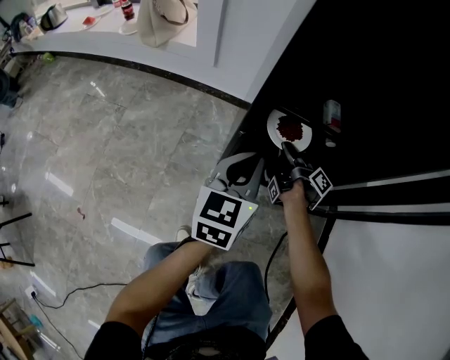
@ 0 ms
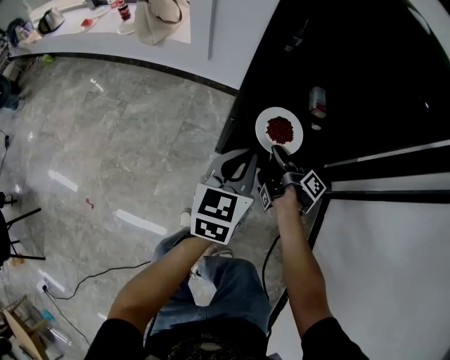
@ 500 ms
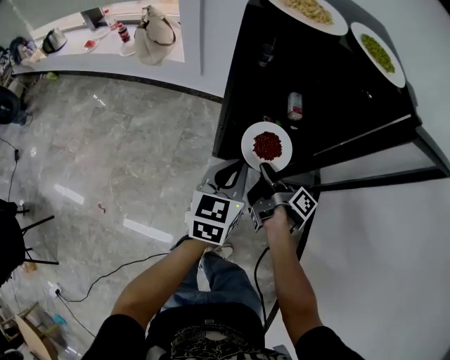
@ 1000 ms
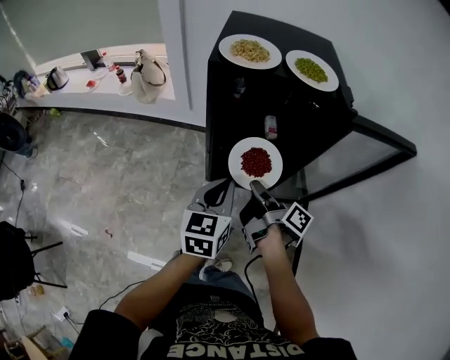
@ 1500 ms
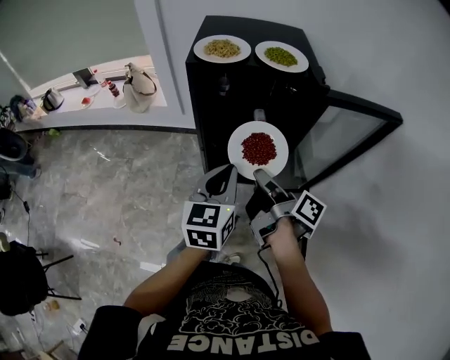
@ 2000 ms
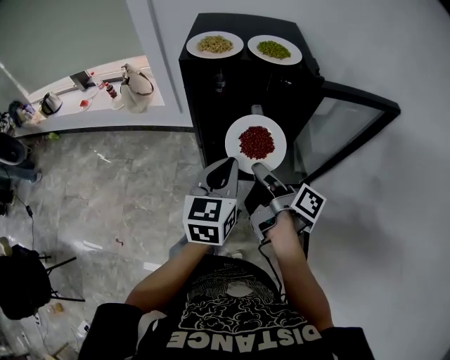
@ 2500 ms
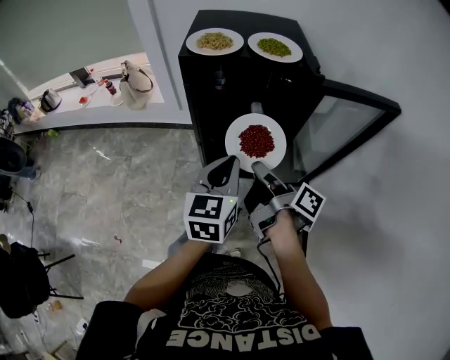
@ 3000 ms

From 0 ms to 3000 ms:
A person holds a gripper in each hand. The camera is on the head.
From 0 ms to 1500 ms: The grippers both shift upward and backward by some 35 cm.
From 1500 ms to 3000 ms: The left gripper is displaced upward and to the right by some 10 cm; the right gripper moves upward, approximately 5 cm.

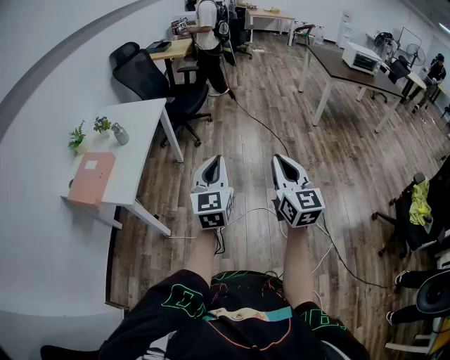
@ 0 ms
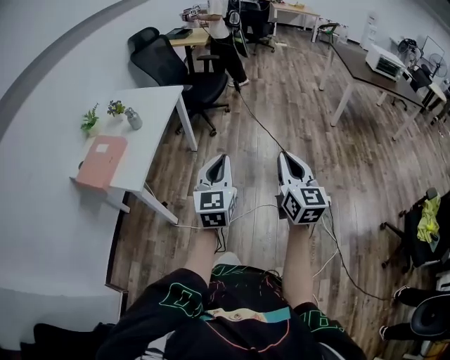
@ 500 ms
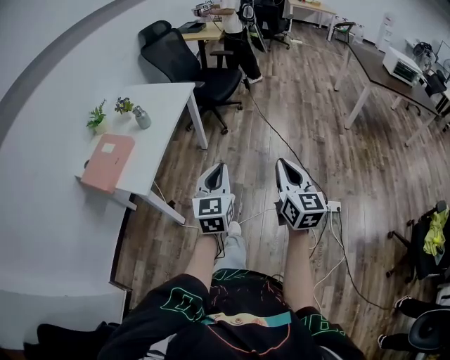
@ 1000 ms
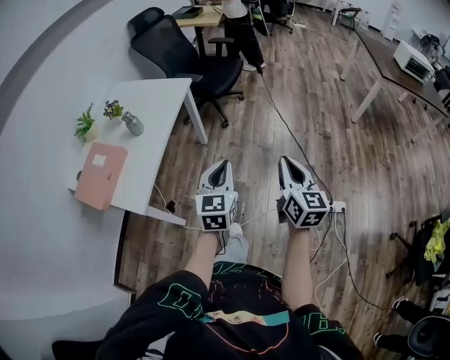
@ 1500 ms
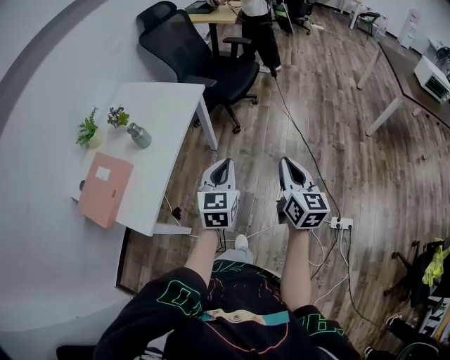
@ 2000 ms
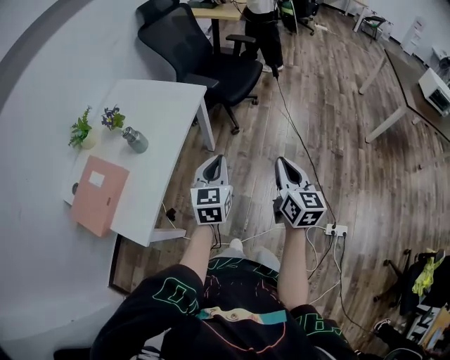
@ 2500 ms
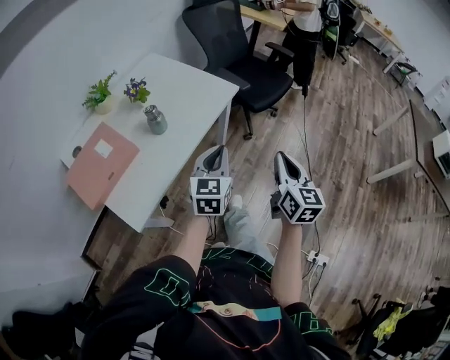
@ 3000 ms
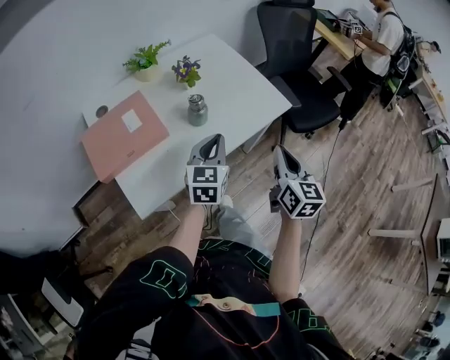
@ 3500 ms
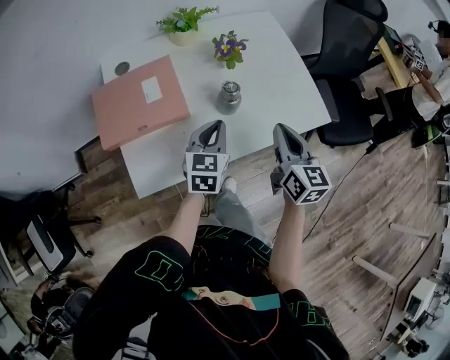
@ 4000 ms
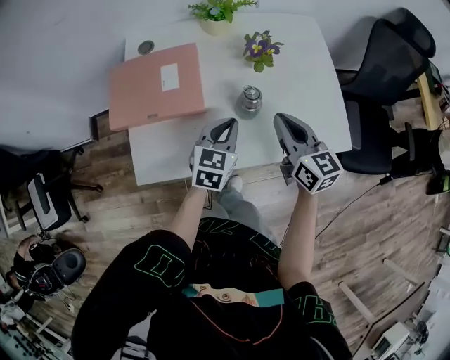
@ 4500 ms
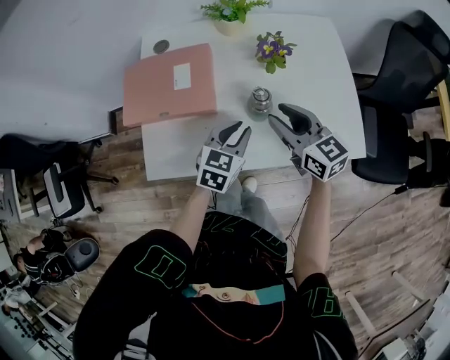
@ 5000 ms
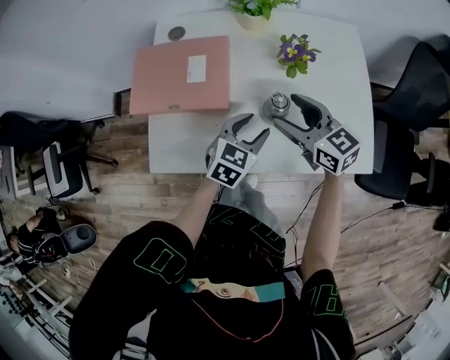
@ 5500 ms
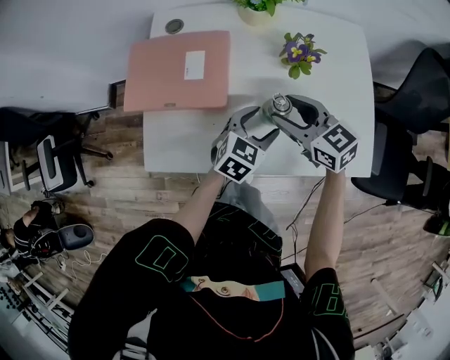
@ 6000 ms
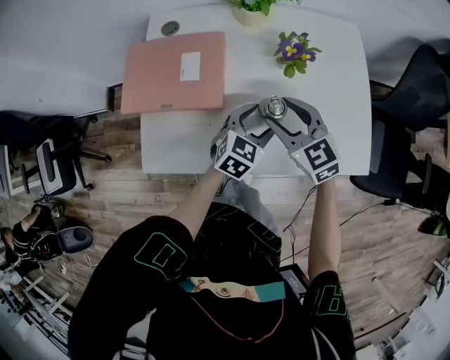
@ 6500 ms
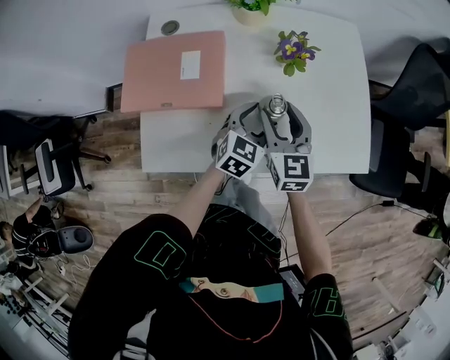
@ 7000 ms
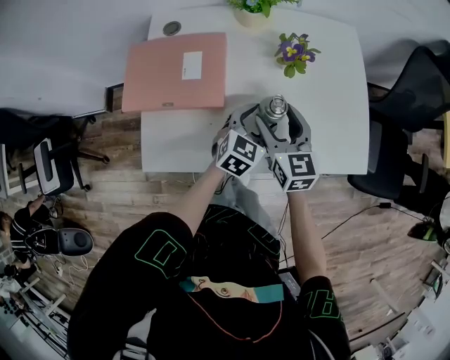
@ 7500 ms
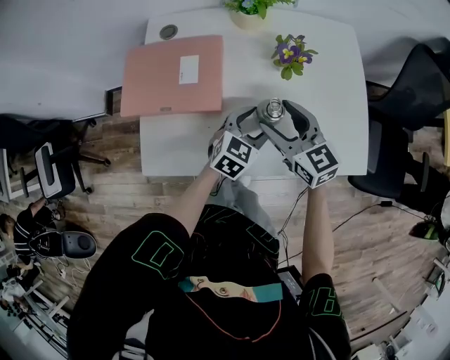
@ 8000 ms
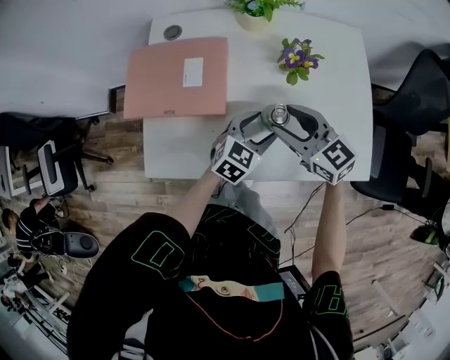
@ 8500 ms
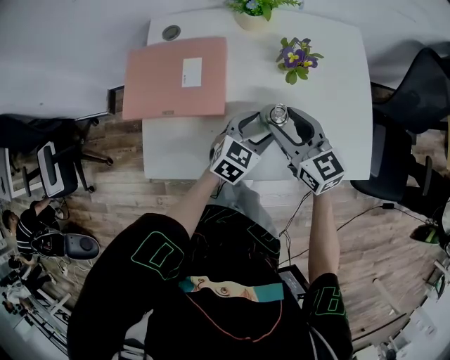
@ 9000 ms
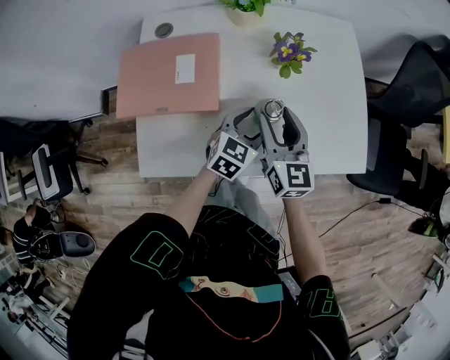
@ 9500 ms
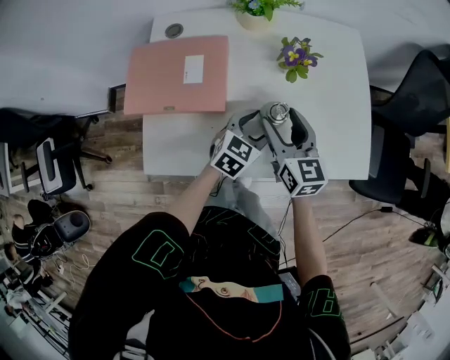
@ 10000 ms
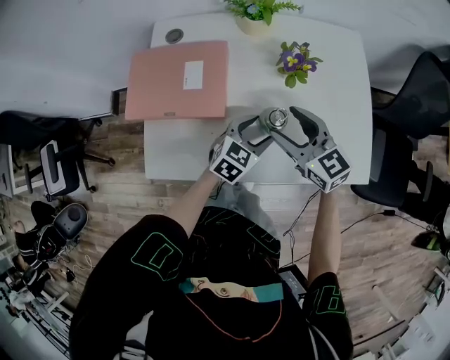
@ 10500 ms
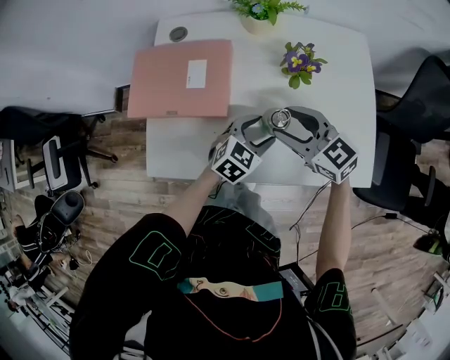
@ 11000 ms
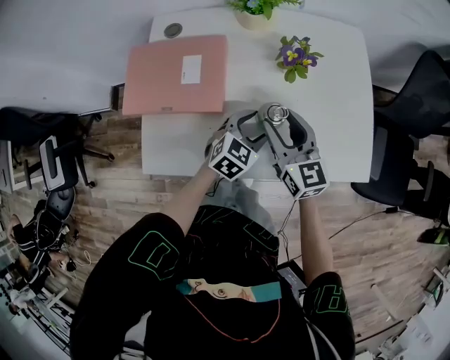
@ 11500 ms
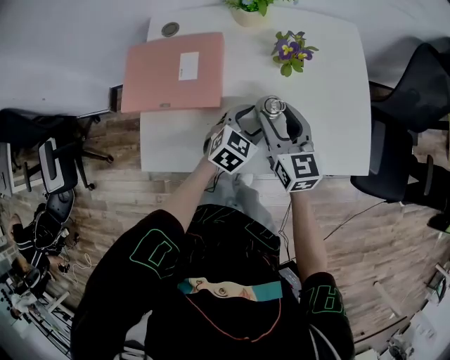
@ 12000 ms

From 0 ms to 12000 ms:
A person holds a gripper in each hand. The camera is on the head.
From 0 ms to 2000 ms: Both grippers travel together forward, roughly 35 cm.
From 2000 ms to 4000 ms: The two grippers travel together, roughly 50 cm. The left gripper rotates about 50 degrees. The right gripper changes its angle by some 60 degrees.
From 4000 ms to 6000 ms: The left gripper moves downward, approximately 10 cm, and opens, while the right gripper moves approximately 20 cm, swivels about 60 degrees, and opens.
From 8000 ms to 10000 ms: The right gripper turns by some 20 degrees.

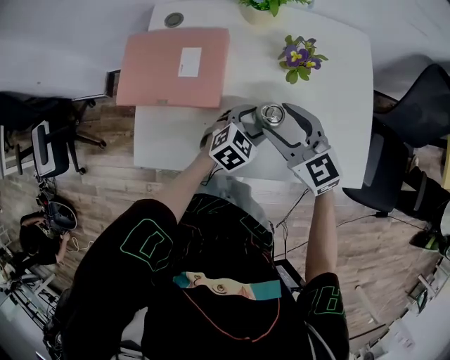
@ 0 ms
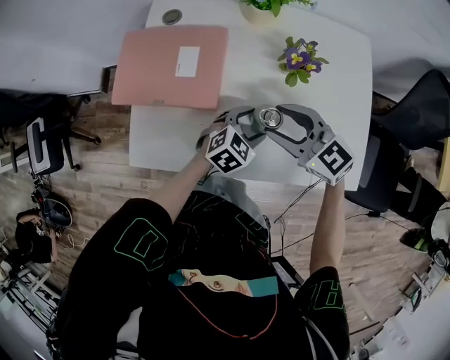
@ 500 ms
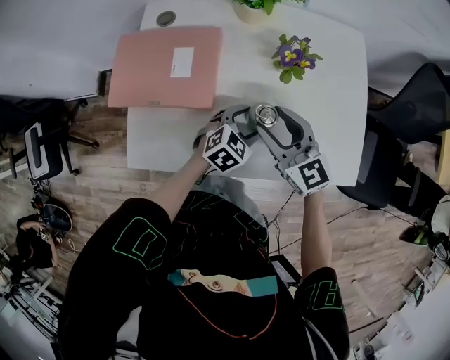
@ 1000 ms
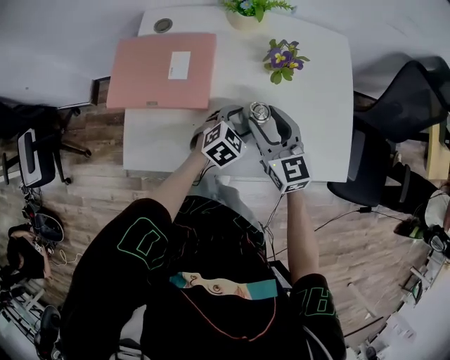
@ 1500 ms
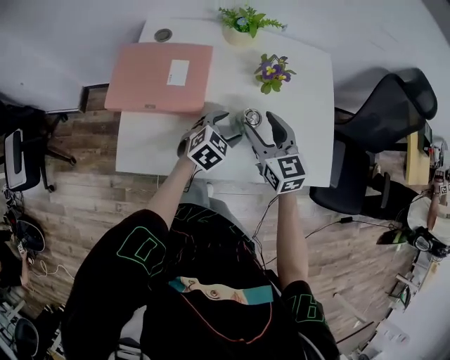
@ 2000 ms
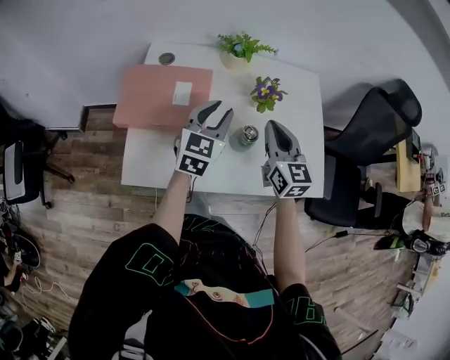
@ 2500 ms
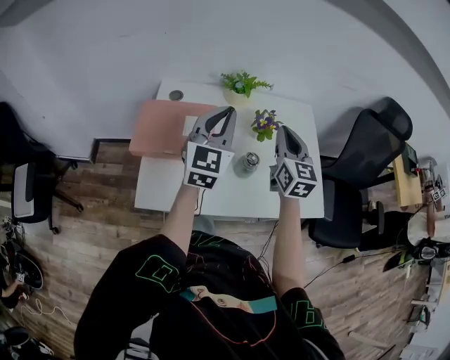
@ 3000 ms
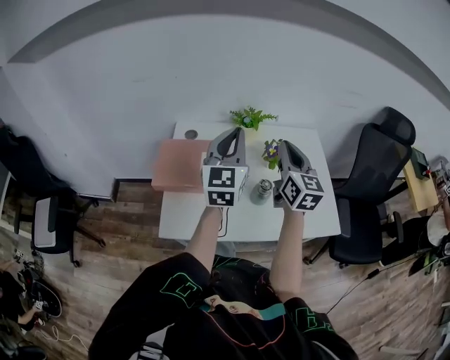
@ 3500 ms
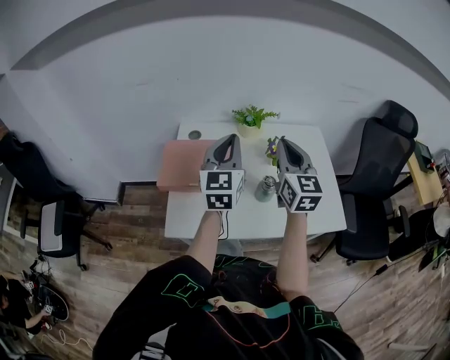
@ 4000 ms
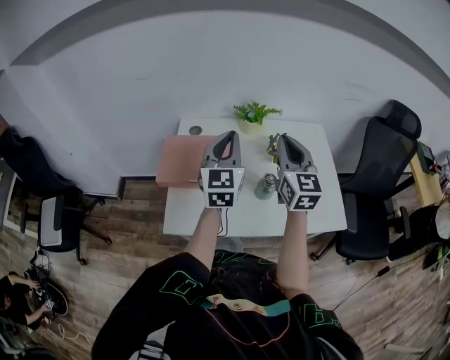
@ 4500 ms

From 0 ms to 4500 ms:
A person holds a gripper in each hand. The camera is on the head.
From 0 ms to 2000 ms: The grippers make only small movements.
From 2000 ms to 4500 ms: The right gripper shifts roughly 20 cm upward, turns by roughly 30 degrees, and closes its fingers; the left gripper moves upward and to the left, about 35 cm, points its fingers about 40 degrees further upward, and closes.

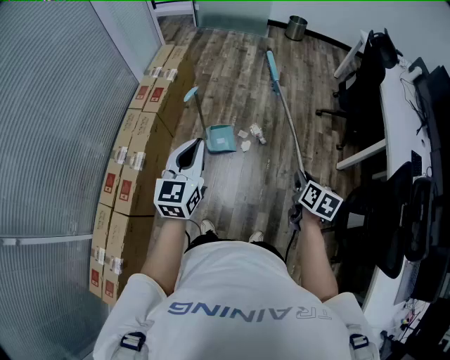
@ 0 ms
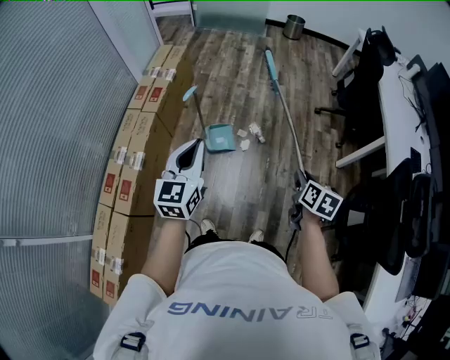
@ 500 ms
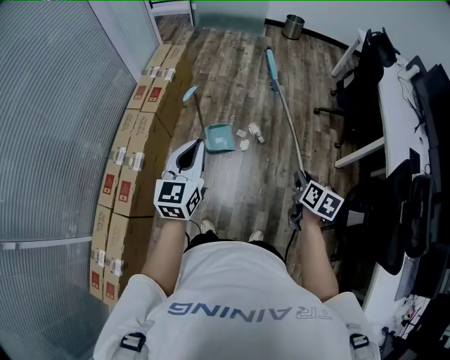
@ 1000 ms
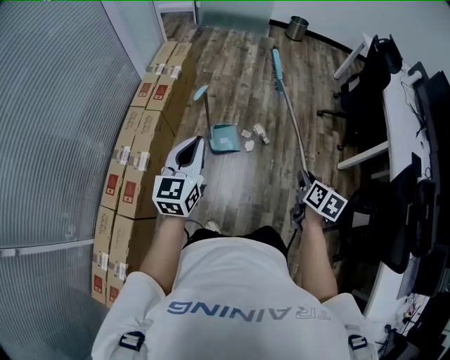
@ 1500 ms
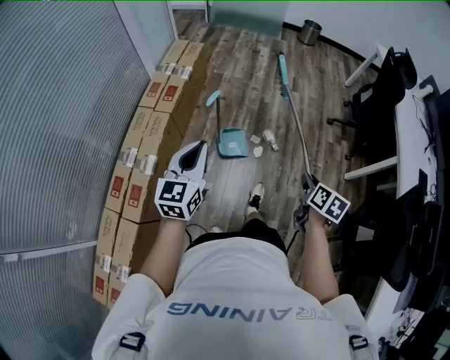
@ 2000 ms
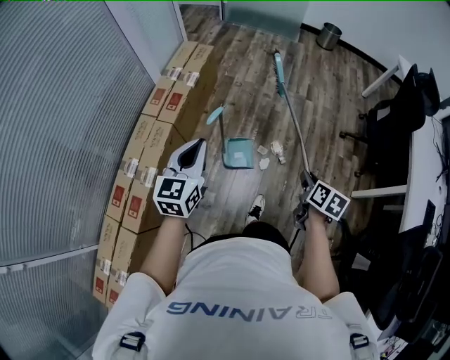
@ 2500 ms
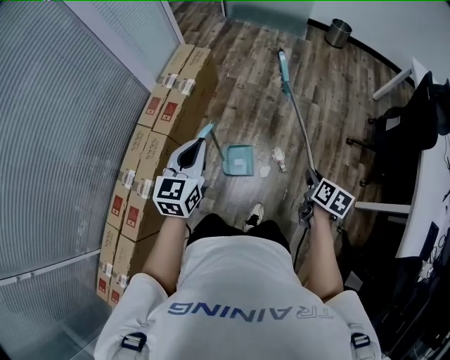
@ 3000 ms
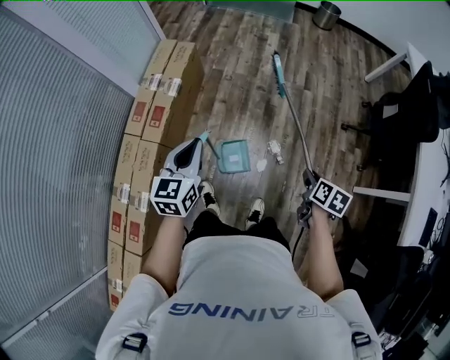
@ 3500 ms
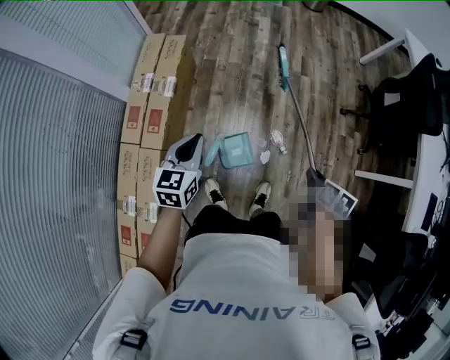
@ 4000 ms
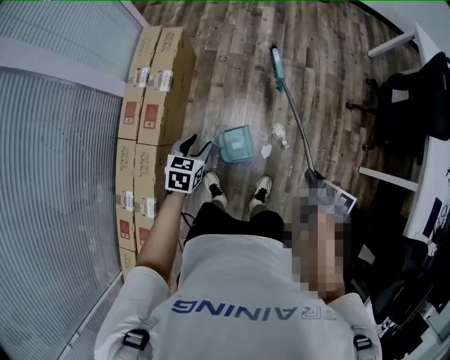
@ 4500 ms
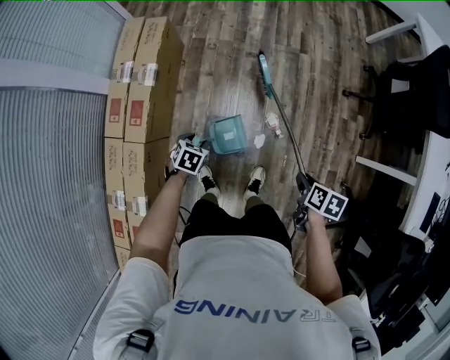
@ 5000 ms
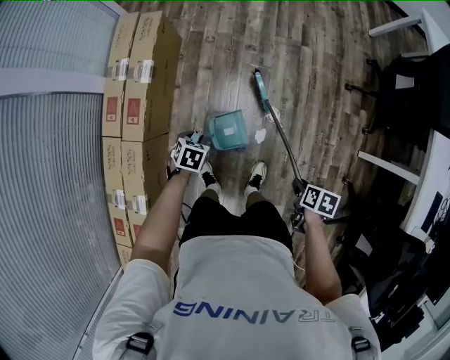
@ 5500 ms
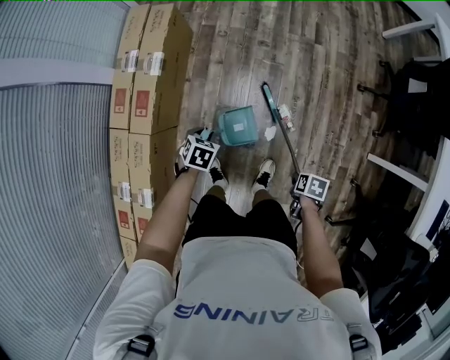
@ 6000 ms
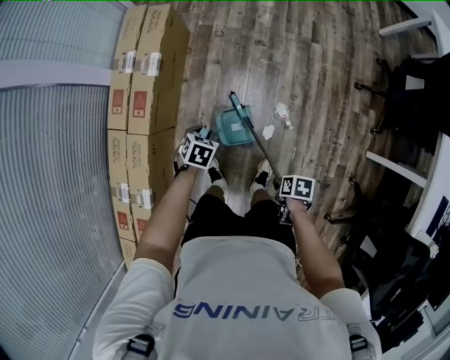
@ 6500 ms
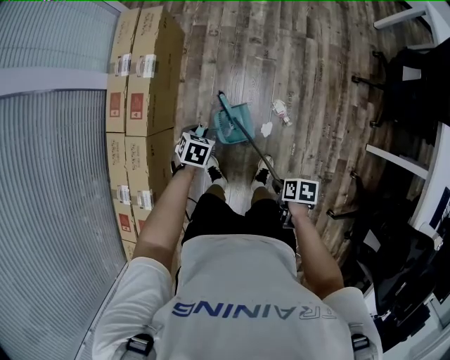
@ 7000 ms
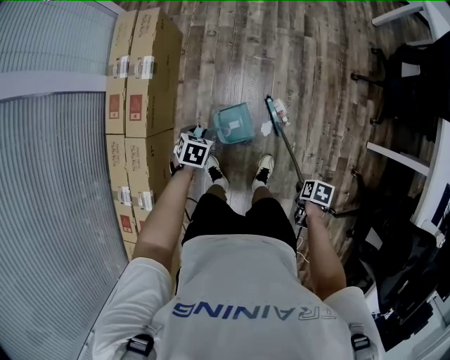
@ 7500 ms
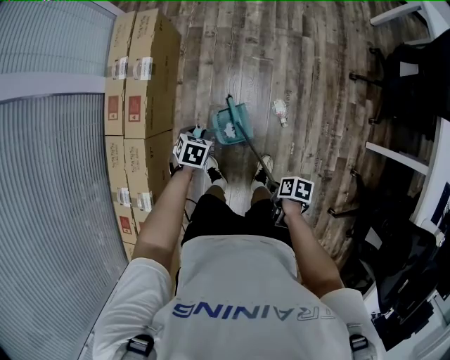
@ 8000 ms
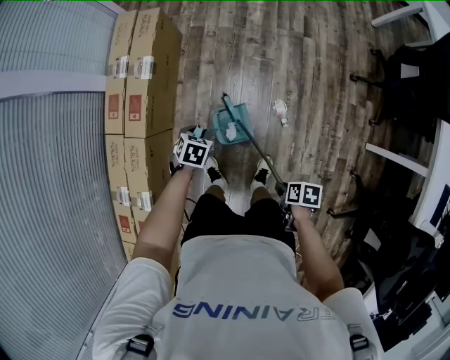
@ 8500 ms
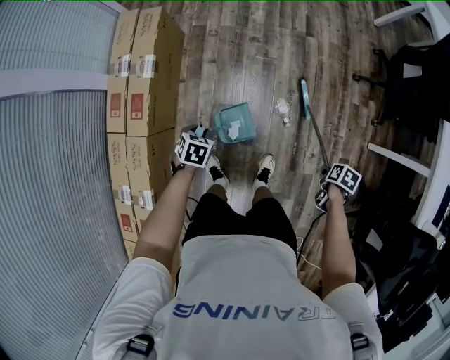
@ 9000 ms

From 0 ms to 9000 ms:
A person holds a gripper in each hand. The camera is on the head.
From 0 ms to 2000 ms: The left gripper shifts by approximately 15 cm.
From 2000 ms to 4500 ms: The left gripper changes place by some 50 cm, angles its fingers downward, by some 40 degrees, and opens its fingers.
From 4500 ms to 7000 ms: The left gripper heads downward, covering roughly 15 cm, rotates roughly 20 degrees, and closes up.
